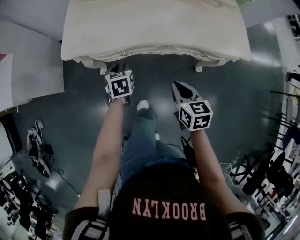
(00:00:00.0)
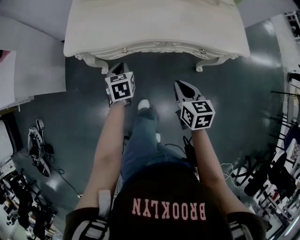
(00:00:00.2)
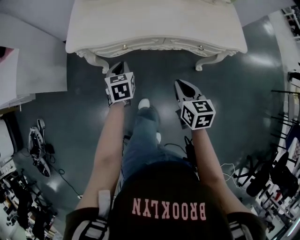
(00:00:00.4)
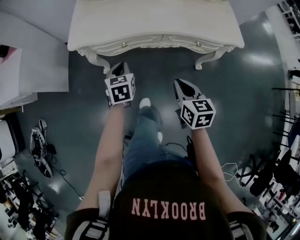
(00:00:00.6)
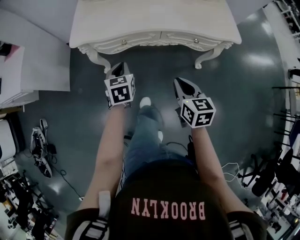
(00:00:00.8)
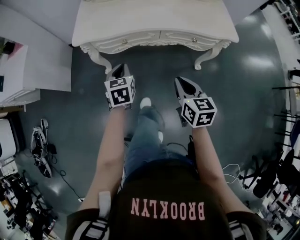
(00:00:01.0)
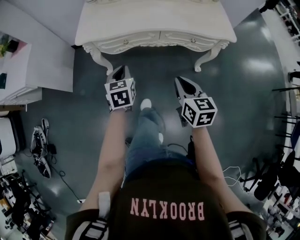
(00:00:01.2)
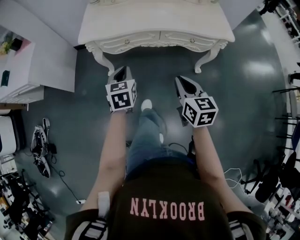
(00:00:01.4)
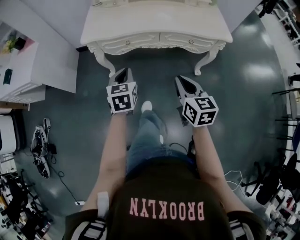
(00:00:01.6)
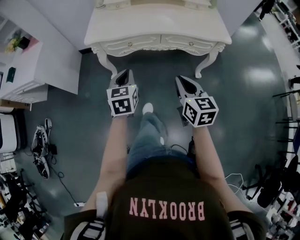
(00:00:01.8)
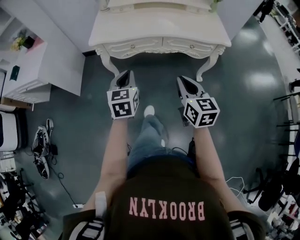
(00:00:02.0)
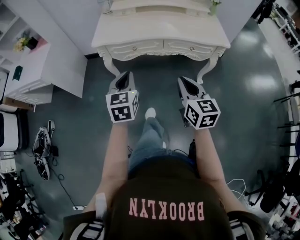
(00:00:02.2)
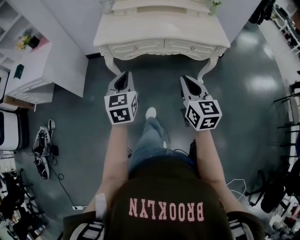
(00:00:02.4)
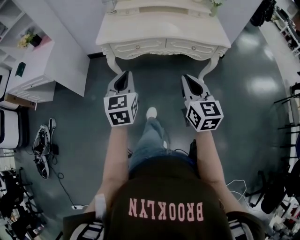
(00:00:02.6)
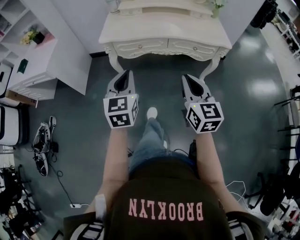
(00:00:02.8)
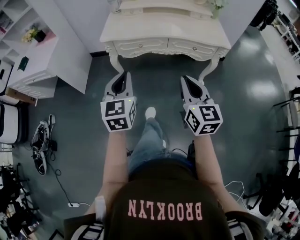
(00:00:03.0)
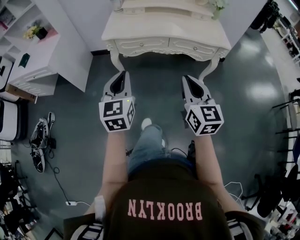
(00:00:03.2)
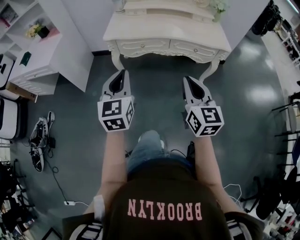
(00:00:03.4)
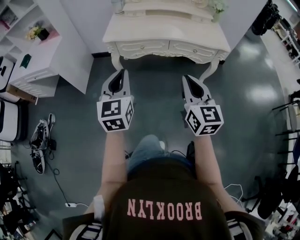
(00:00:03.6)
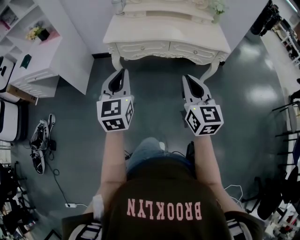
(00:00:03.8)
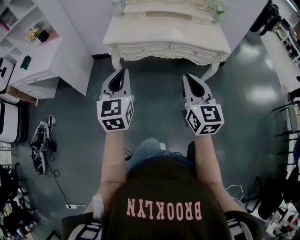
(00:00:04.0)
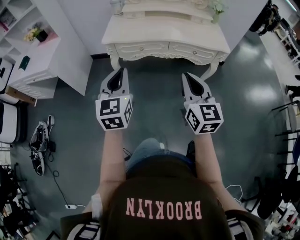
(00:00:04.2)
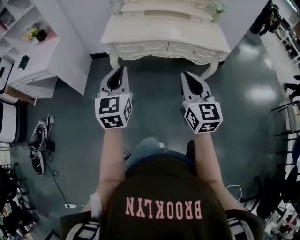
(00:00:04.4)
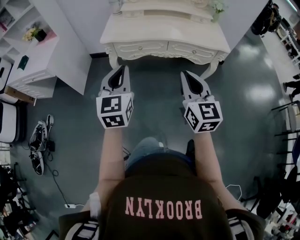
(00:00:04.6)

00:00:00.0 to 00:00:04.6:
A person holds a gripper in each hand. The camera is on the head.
00:00:00.0 to 00:00:01.6: Both grippers move backward and upward, some 25 cm. The left gripper rotates some 20 degrees, and closes its fingers.
00:00:01.6 to 00:00:03.0: The two grippers go roughly 20 cm backward and upward. The left gripper rotates some 20 degrees.
00:00:03.0 to 00:00:04.6: The grippers stay close to where they were, moving slightly.

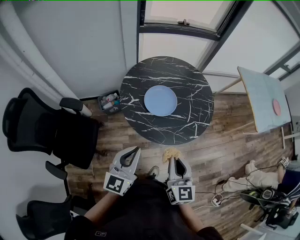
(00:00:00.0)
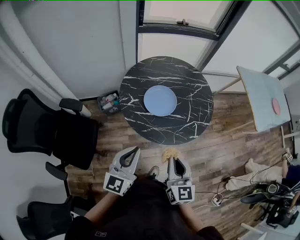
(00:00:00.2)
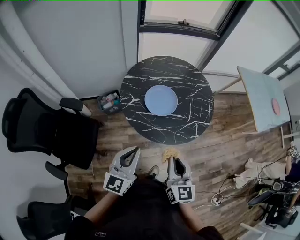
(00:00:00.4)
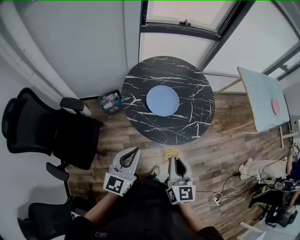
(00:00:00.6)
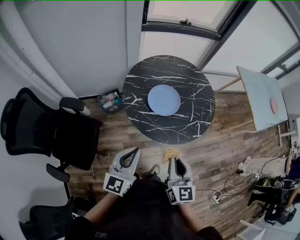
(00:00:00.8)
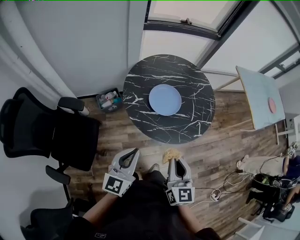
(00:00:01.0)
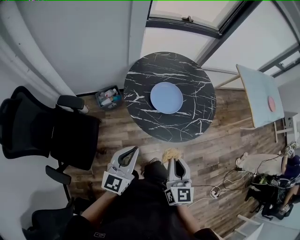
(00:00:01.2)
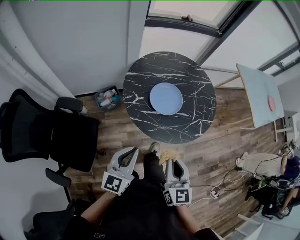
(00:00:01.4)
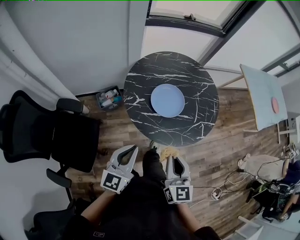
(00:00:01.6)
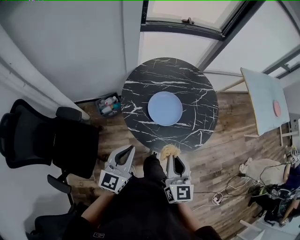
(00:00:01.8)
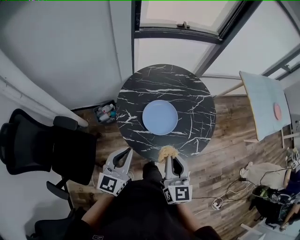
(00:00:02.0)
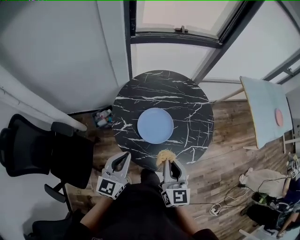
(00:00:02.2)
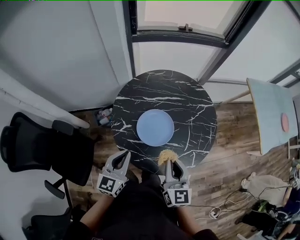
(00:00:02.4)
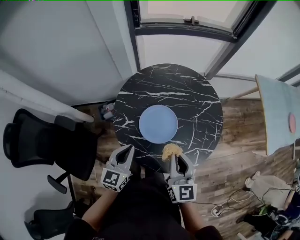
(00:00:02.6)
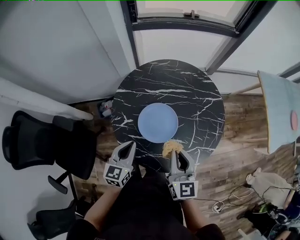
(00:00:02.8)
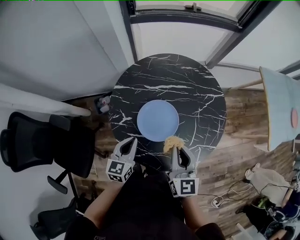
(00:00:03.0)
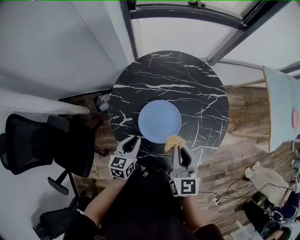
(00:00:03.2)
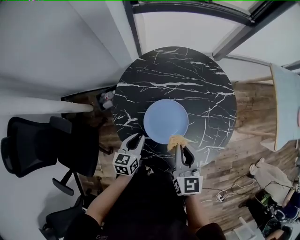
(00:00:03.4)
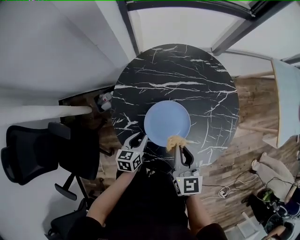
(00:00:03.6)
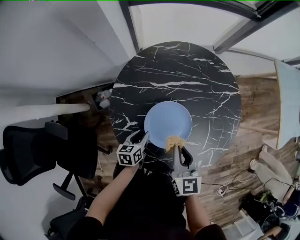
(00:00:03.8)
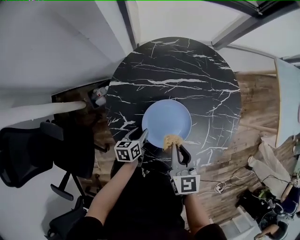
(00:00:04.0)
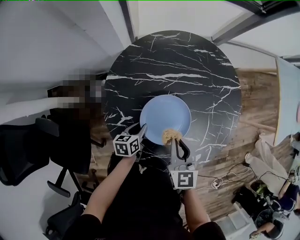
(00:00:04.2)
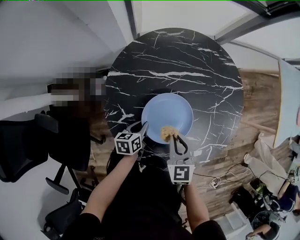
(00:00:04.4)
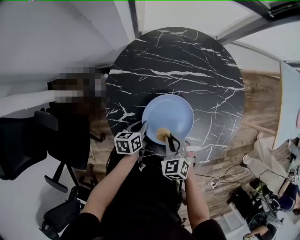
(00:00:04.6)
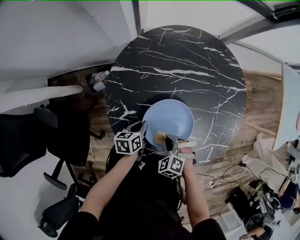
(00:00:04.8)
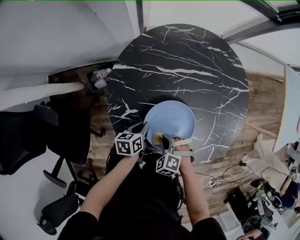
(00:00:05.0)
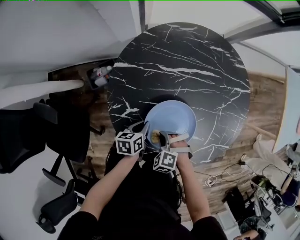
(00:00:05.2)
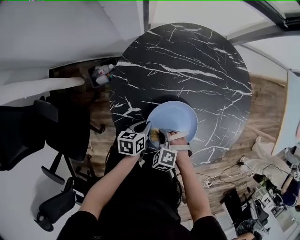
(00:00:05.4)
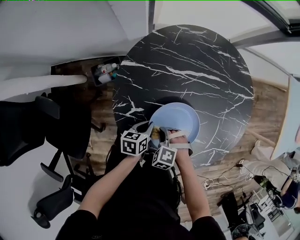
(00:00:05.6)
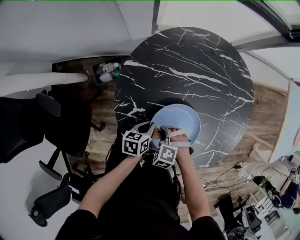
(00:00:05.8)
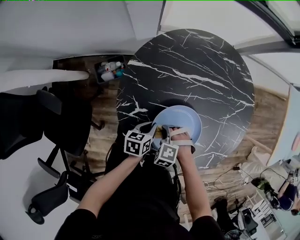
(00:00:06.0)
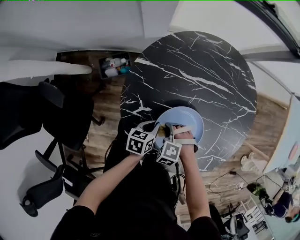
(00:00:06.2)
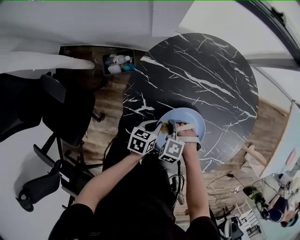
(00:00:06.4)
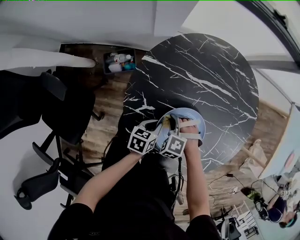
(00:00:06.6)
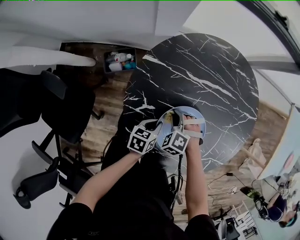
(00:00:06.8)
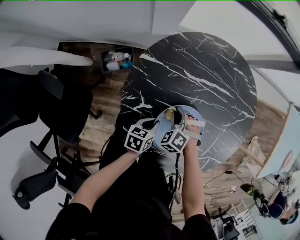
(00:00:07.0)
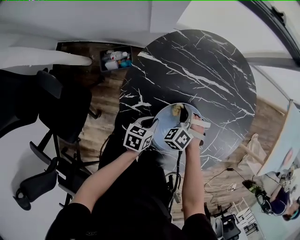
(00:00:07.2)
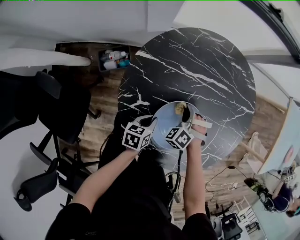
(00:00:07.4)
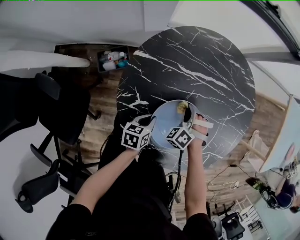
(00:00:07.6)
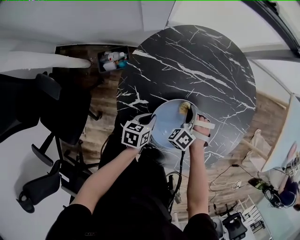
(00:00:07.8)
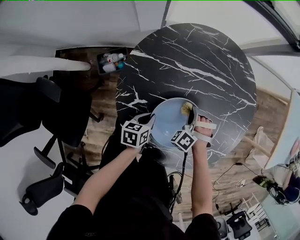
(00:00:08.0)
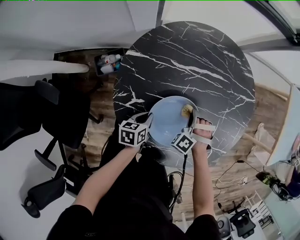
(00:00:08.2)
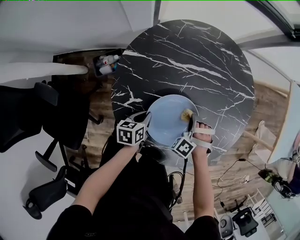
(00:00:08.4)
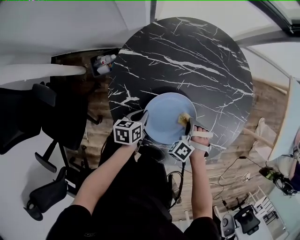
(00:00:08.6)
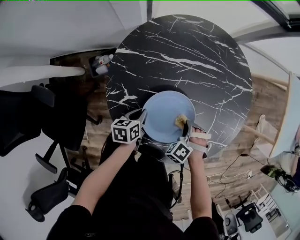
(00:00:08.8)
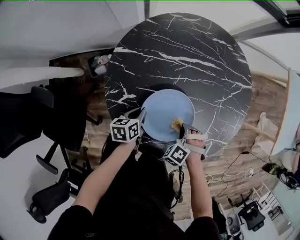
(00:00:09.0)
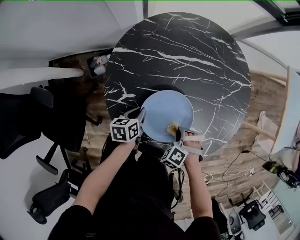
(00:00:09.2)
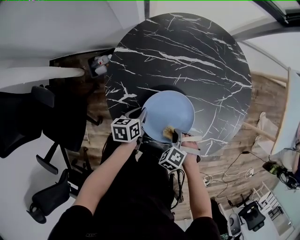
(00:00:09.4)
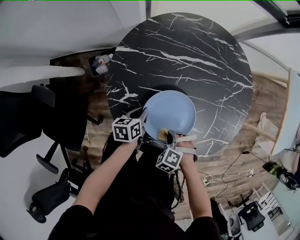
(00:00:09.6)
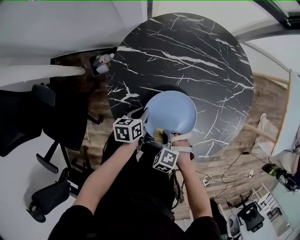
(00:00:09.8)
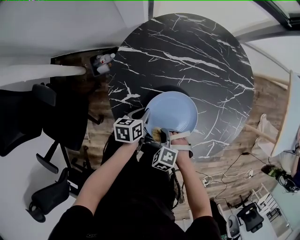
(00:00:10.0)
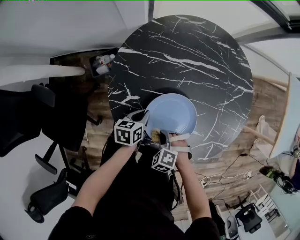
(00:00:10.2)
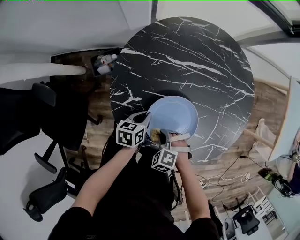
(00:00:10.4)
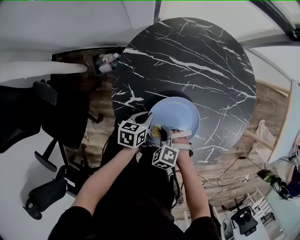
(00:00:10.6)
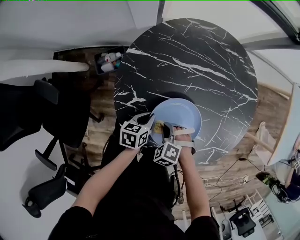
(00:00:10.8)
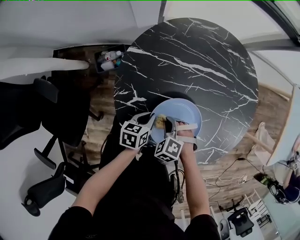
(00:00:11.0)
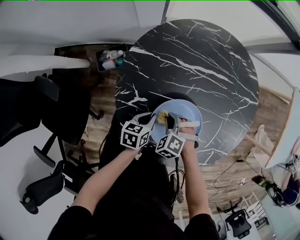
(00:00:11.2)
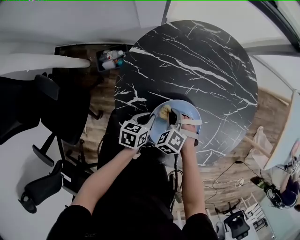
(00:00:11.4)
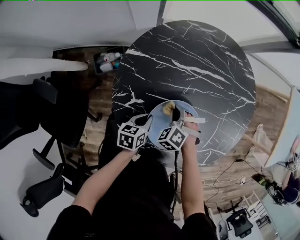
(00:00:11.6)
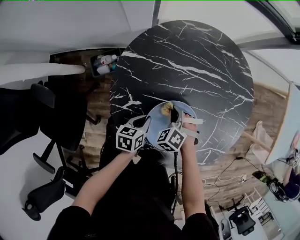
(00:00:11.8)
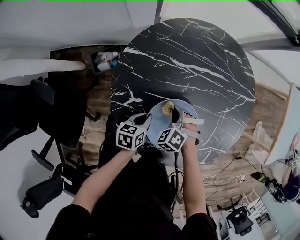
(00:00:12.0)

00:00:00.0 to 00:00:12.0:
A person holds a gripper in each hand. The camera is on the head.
00:00:00.0 to 00:00:01.6: The grippers both shift to the left by roughly 10 cm.
00:00:01.6 to 00:00:03.0: The left gripper goes approximately 25 cm forward and downward, and changes its angle by roughly 20 degrees. The right gripper travels forward and to the right by some 30 cm.
00:00:03.0 to 00:00:04.4: Both grippers travel together downward, roughly 20 cm. The left gripper swivels roughly 40 degrees, and opens, then closes once more. Meanwhile the right gripper turns by roughly 30 degrees.
00:00:04.4 to 00:00:06.0: The right gripper heads downward, covering some 15 cm, and rolls counterclockwise, seen from behind, by about 60 degrees.
00:00:06.0 to 00:00:07.6: The right gripper shifts by roughly 15 cm, and changes its angle by approximately 30 degrees.
00:00:07.6 to 00:00:09.0: The right gripper shifts roughly 15 cm to the right and backward.
00:00:09.0 to 00:00:10.4: The right gripper moves some 15 cm, and rotates roughly 20 degrees.
00:00:10.4 to 00:00:12.0: The right gripper moves about 15 cm.

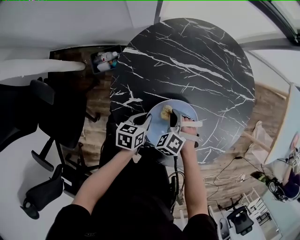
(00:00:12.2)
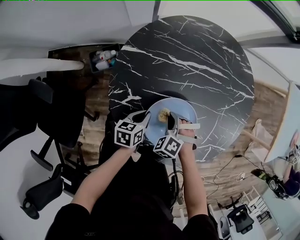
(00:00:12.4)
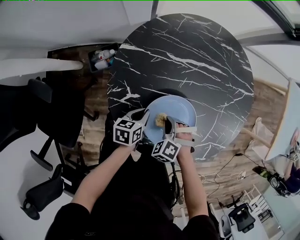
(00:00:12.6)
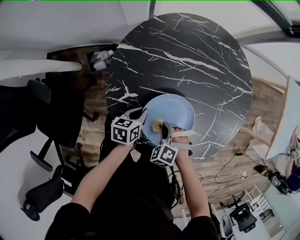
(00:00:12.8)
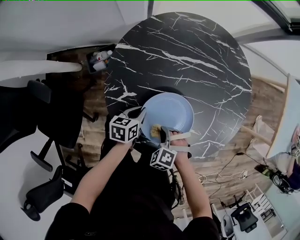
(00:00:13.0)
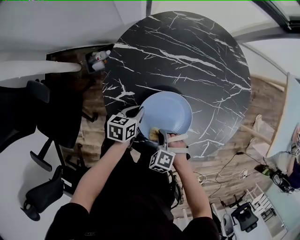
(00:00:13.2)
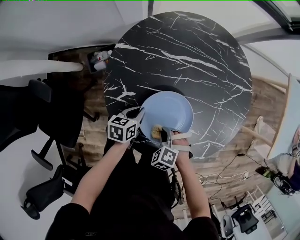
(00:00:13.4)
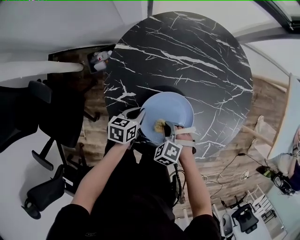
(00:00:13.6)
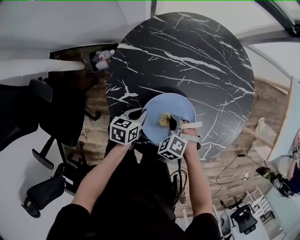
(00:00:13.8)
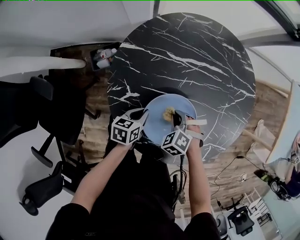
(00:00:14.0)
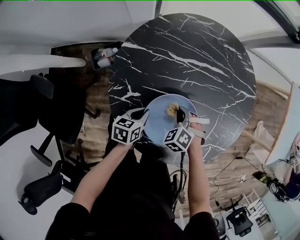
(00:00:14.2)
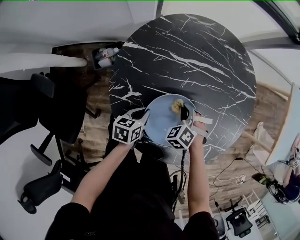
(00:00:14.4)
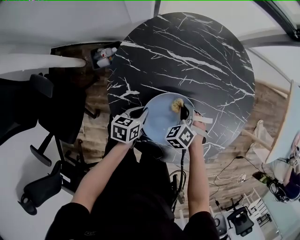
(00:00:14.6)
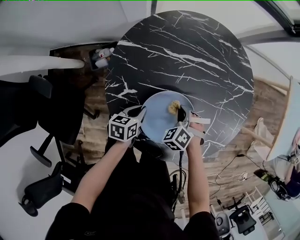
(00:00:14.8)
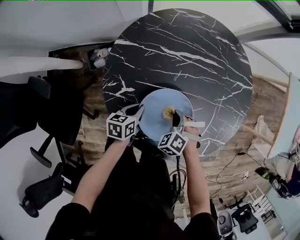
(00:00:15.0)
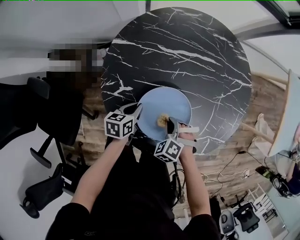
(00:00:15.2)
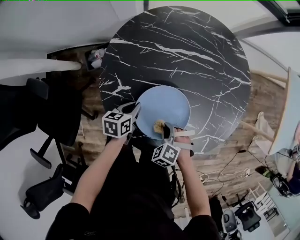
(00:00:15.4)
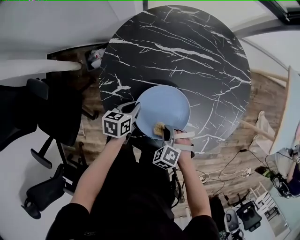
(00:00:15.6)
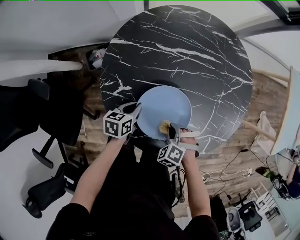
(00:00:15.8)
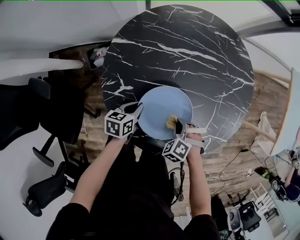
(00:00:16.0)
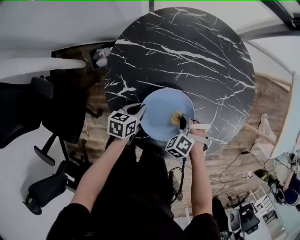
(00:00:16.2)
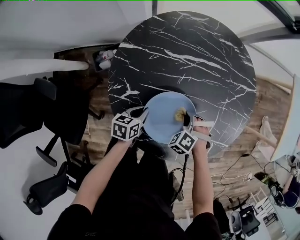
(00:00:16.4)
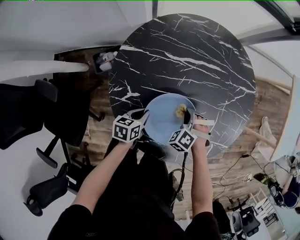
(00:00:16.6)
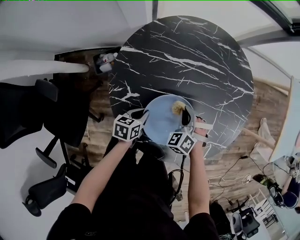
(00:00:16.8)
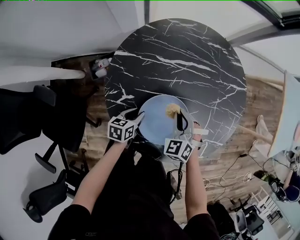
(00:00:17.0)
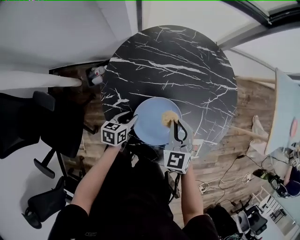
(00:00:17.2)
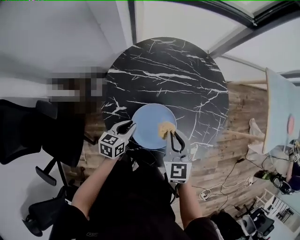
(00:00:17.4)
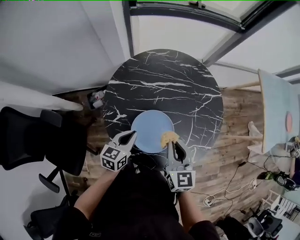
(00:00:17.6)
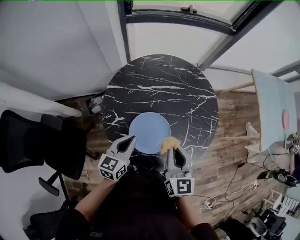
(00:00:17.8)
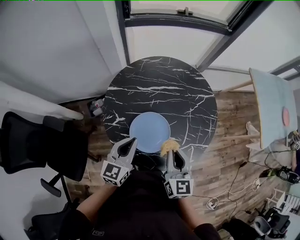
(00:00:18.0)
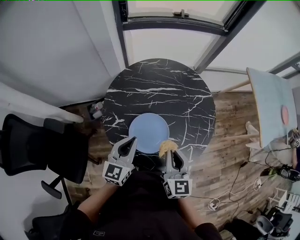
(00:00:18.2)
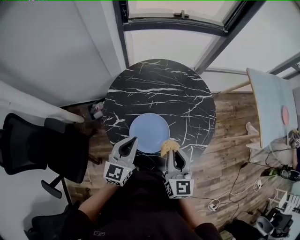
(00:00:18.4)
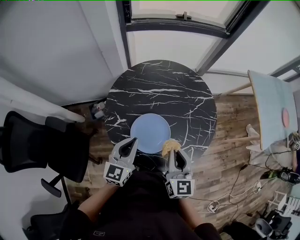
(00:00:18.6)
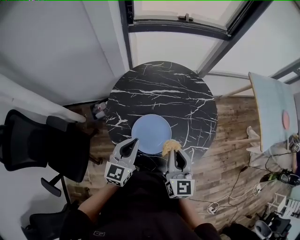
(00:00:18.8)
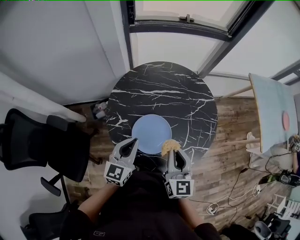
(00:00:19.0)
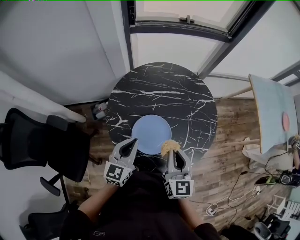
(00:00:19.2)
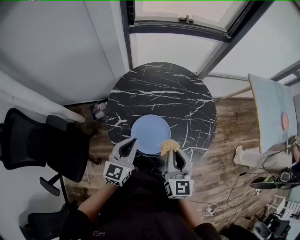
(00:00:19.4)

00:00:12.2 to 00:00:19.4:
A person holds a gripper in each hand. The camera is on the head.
00:00:16.6 to 00:00:18.0: Both grippers travel together upward, roughly 30 cm. The right gripper rolls clockwise, seen from behind, by some 70 degrees. The left gripper tips its fingers upward by roughly 30 degrees, and opens and closes again.
00:00:18.0 to 00:00:19.4: The grippers stay close to where they were, moving slightly.
